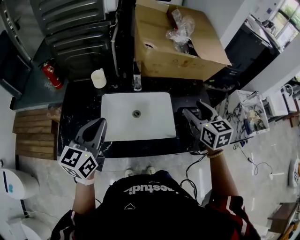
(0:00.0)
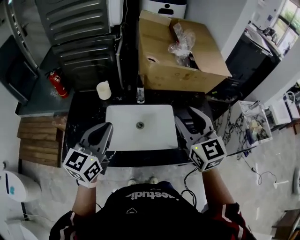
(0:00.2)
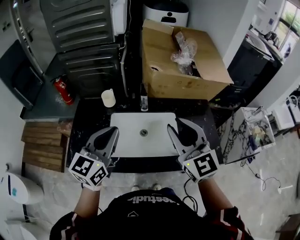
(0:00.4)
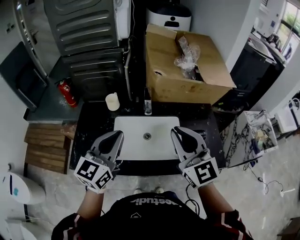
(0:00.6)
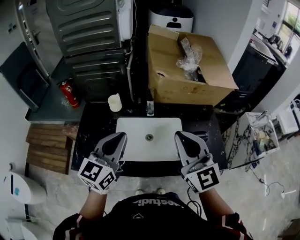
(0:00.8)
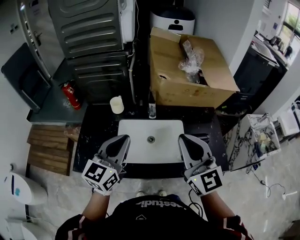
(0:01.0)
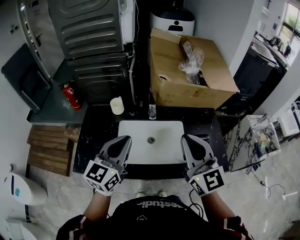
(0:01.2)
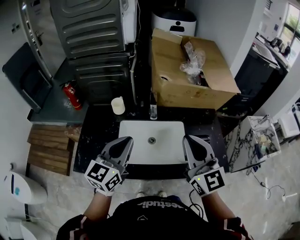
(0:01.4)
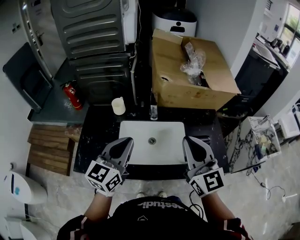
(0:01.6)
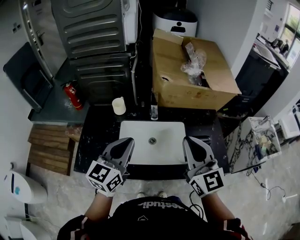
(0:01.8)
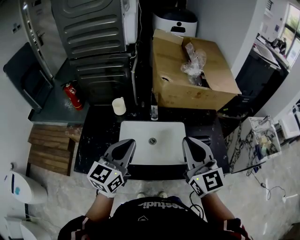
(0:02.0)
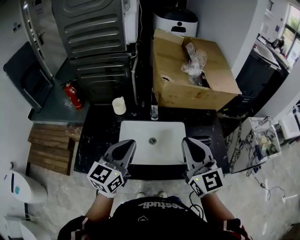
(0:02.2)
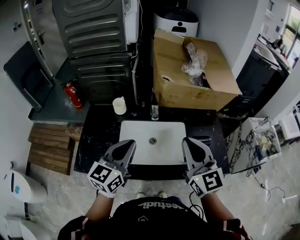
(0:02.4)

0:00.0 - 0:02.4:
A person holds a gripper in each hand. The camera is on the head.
0:00.0 - 0:01.2: The left gripper ends up some 5 cm from where it was; the right gripper shifts some 20 cm upward, to the left and backward, turns by roughly 30 degrees, and closes its fingers.
0:01.2 - 0:02.4: The grippers stay close to where they were, moving slightly.

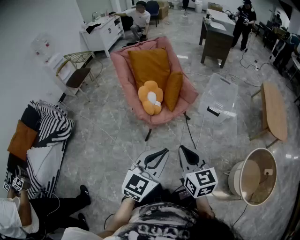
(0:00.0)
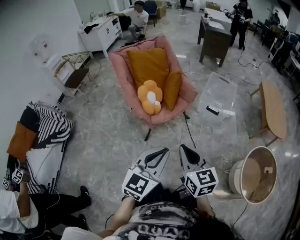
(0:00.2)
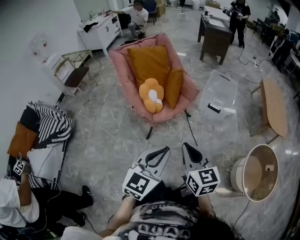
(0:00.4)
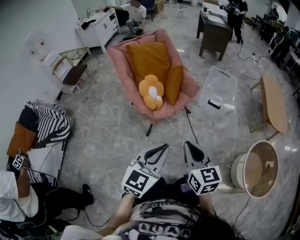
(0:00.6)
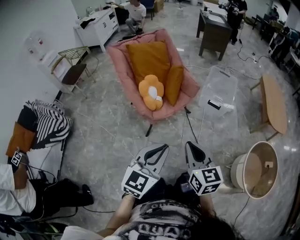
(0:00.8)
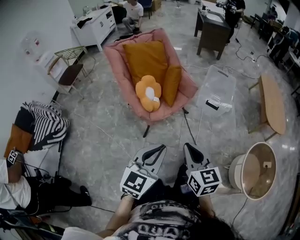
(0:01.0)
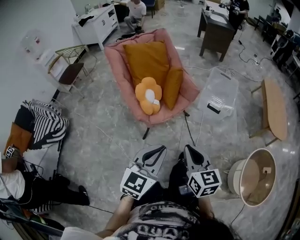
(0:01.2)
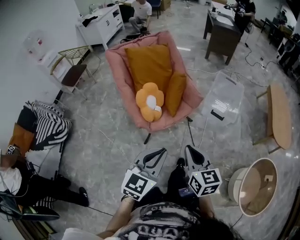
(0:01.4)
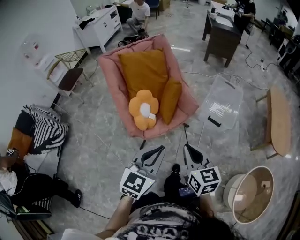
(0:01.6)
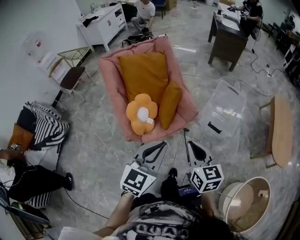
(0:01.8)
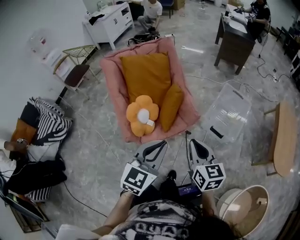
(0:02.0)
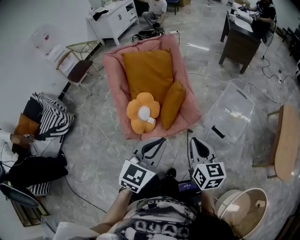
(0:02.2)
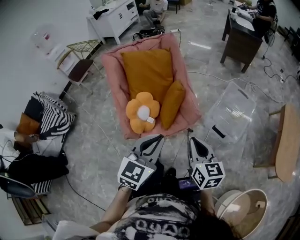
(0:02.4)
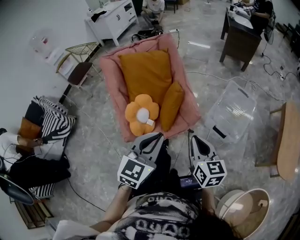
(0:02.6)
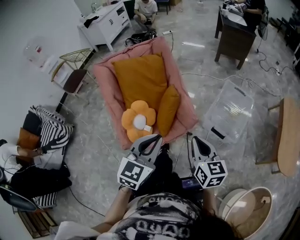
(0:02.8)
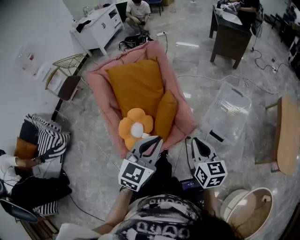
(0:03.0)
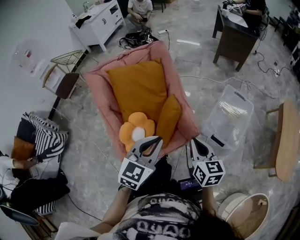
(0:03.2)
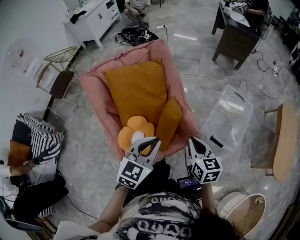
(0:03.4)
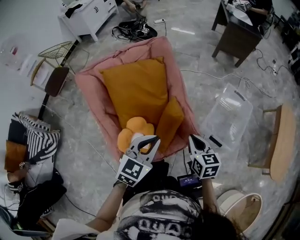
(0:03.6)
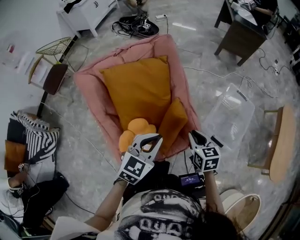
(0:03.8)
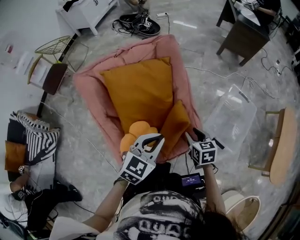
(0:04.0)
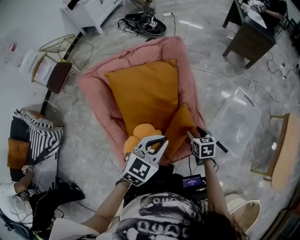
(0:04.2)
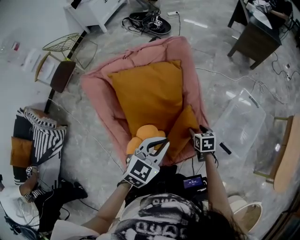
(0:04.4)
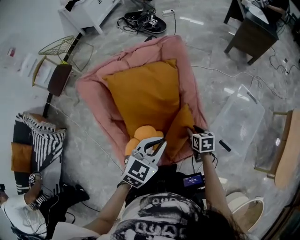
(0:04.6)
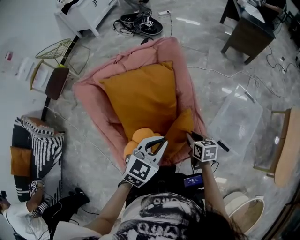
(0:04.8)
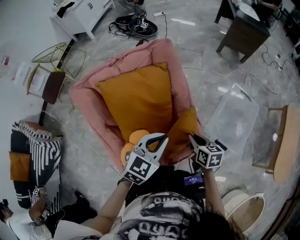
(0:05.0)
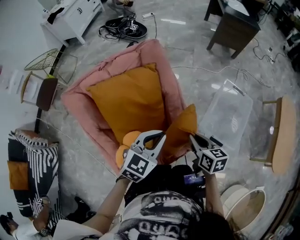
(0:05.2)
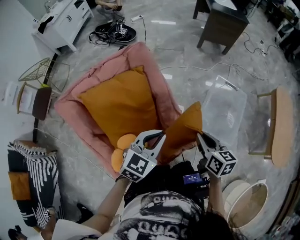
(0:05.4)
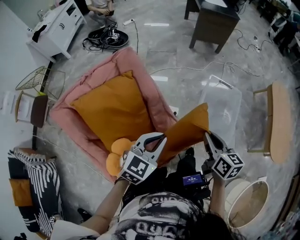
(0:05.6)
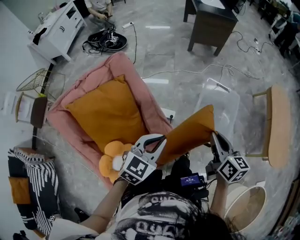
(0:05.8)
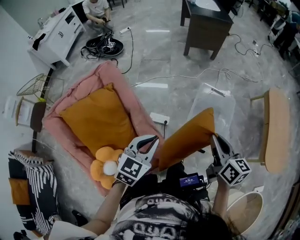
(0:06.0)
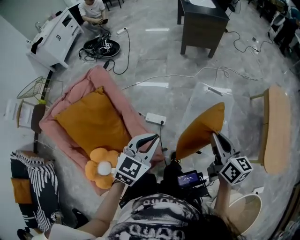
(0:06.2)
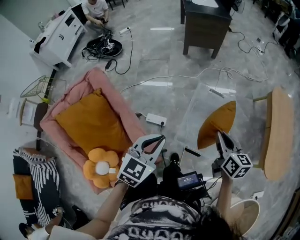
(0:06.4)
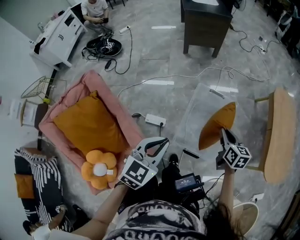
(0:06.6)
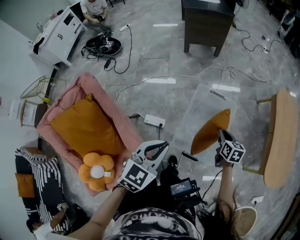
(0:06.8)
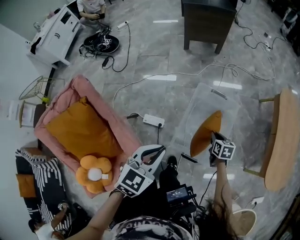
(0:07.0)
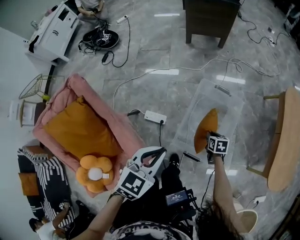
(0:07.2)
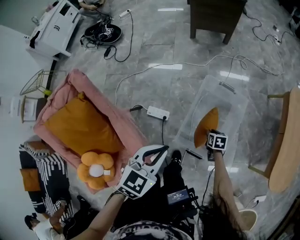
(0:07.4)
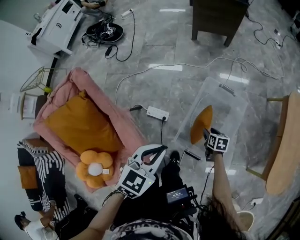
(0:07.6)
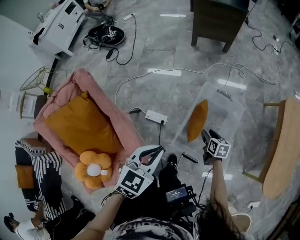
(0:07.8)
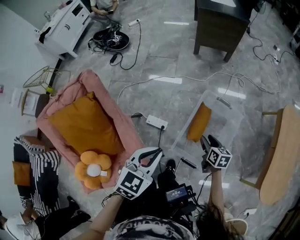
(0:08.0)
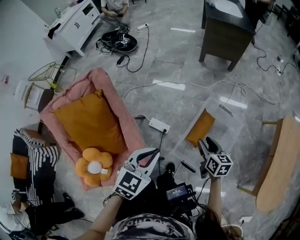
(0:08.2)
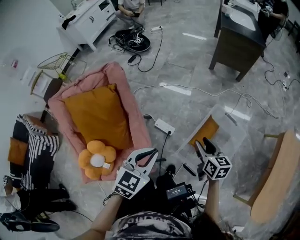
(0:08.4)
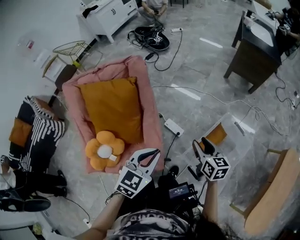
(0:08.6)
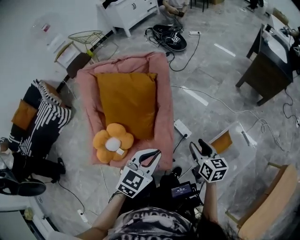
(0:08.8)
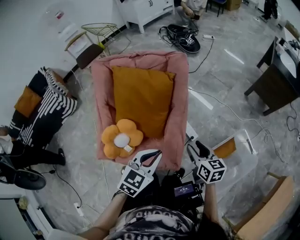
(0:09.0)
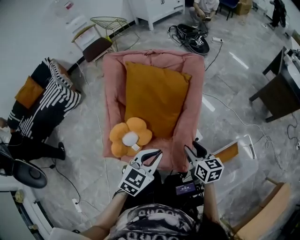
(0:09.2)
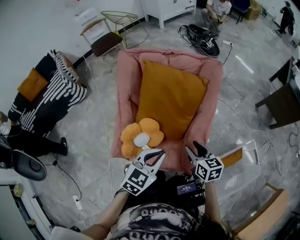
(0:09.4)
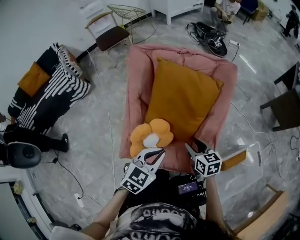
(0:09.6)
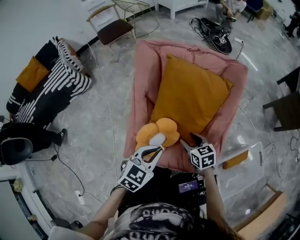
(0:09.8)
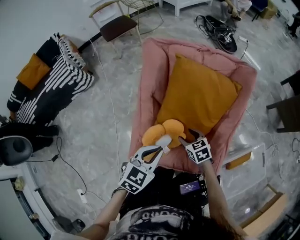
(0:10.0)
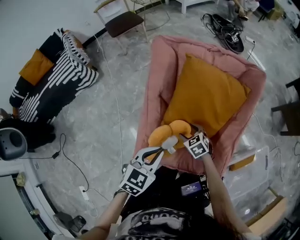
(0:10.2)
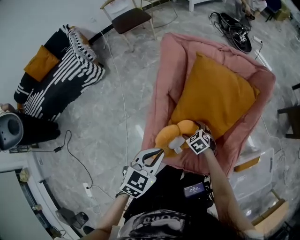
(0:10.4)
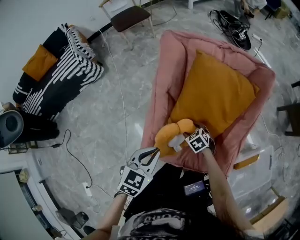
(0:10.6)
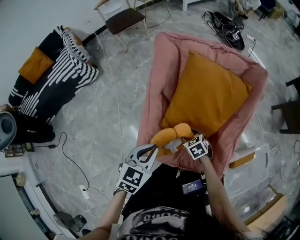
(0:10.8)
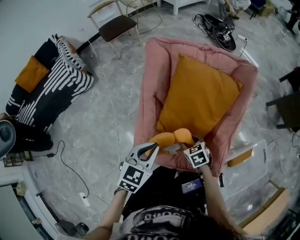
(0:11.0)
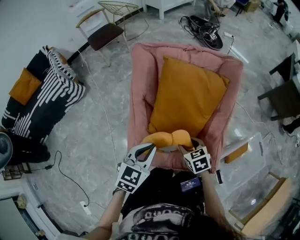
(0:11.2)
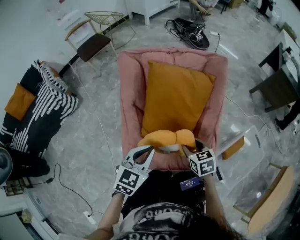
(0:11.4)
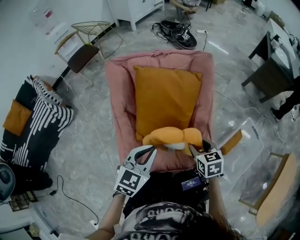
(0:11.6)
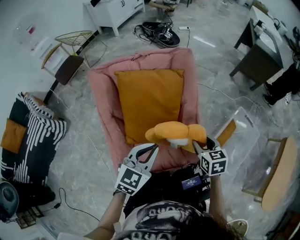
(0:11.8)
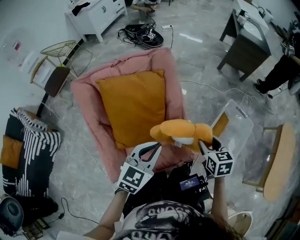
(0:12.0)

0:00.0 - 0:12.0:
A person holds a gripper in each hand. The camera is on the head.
0:00.0 - 0:01.6: The two grippers go some 20 cm forward.
0:01.6 - 0:03.0: The left gripper is displaced forward by approximately 25 cm, while the right gripper heads forward and to the right, covering about 25 cm.
0:03.0 - 0:04.4: The right gripper is displaced forward, downward and to the left by roughly 40 cm, tilts its fingers some 40 degrees downward, and opens. Meanwhile the left gripper shifts about 25 cm forward, to the left and downward.
0:04.4 - 0:06.0: The right gripper is displaced to the right and upward by approximately 40 cm, tilts its fingers roughly 40 degrees upward, and closes; the left gripper shifts some 25 cm to the right and forward.
0:06.0 - 0:07.6: The left gripper moves to the right, forward and downward, roughly 20 cm; the right gripper shifts roughly 40 cm downward and forward, tilts its fingers about 40 degrees downward, and opens its fingers.
0:07.6 - 0:09.0: The right gripper moves roughly 50 cm, and swivels approximately 50 degrees. Meanwhile the left gripper moves about 30 cm, and changes its angle by roughly 40 degrees.
0:09.0 - 0:10.4: The left gripper moves to the left, some 35 cm. The right gripper is displaced to the left and downward by about 40 cm, tips its fingers downward by some 30 degrees, and opens its fingers.
0:10.4 - 0:12.0: The left gripper moves approximately 25 cm, and swivels about 40 degrees. Meanwhile the right gripper ends up about 40 cm from where it was, swivels some 70 degrees, and closes.

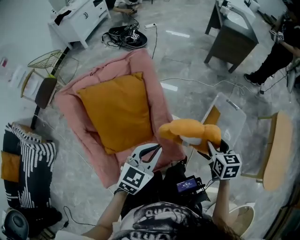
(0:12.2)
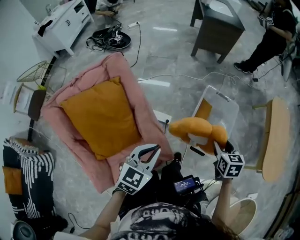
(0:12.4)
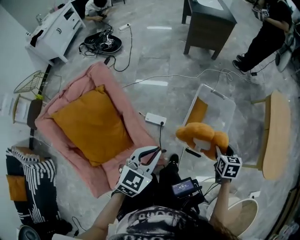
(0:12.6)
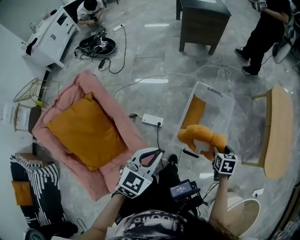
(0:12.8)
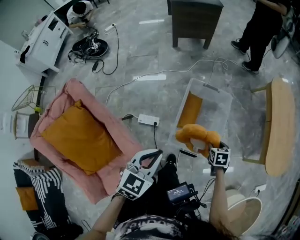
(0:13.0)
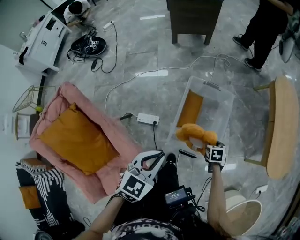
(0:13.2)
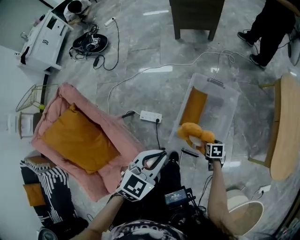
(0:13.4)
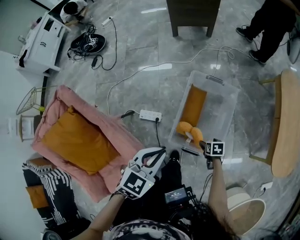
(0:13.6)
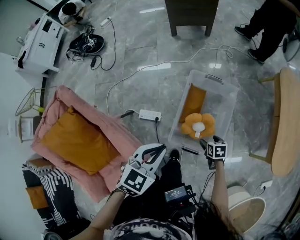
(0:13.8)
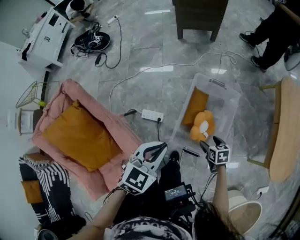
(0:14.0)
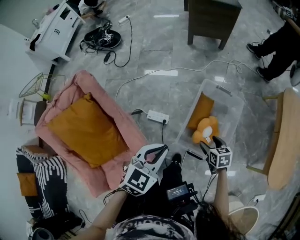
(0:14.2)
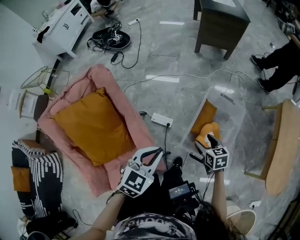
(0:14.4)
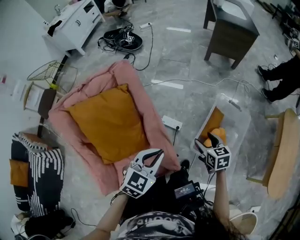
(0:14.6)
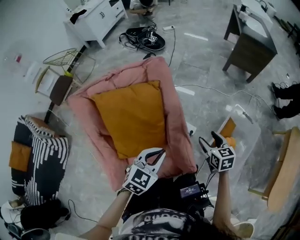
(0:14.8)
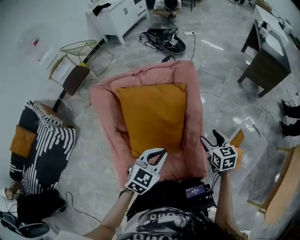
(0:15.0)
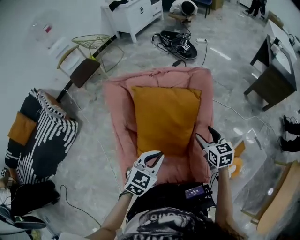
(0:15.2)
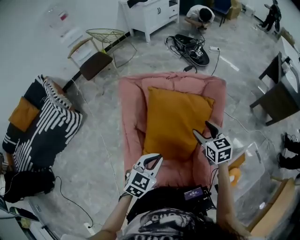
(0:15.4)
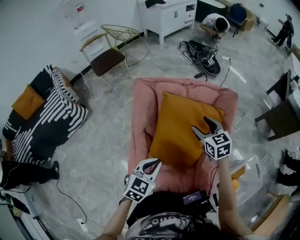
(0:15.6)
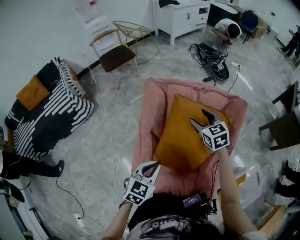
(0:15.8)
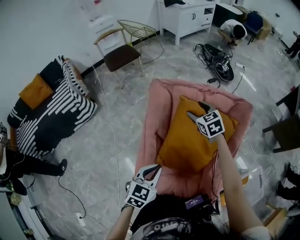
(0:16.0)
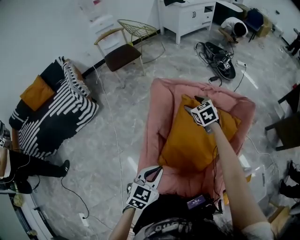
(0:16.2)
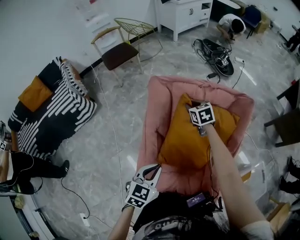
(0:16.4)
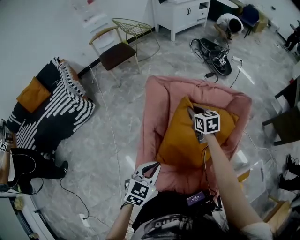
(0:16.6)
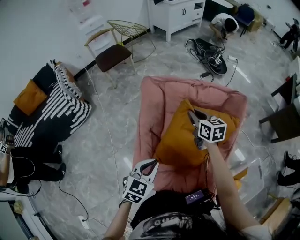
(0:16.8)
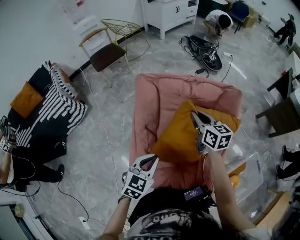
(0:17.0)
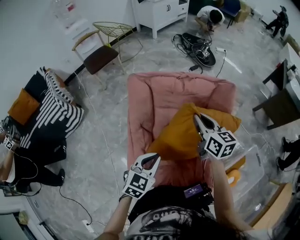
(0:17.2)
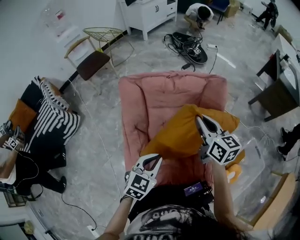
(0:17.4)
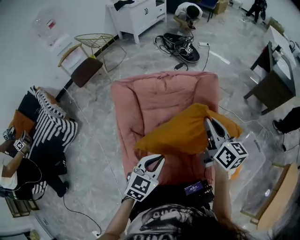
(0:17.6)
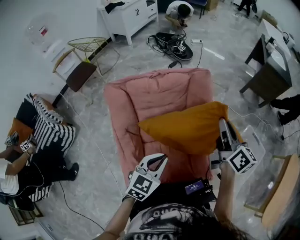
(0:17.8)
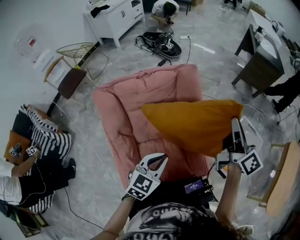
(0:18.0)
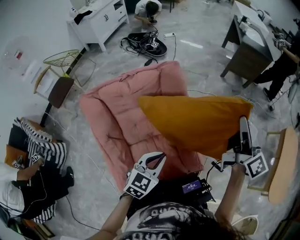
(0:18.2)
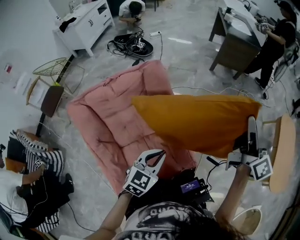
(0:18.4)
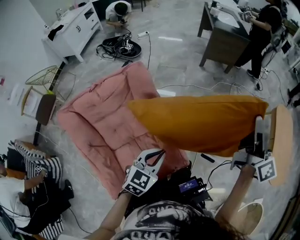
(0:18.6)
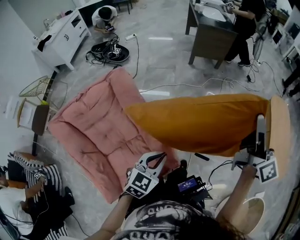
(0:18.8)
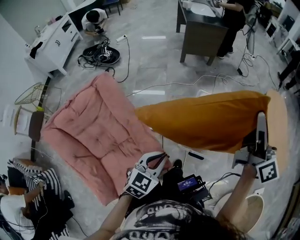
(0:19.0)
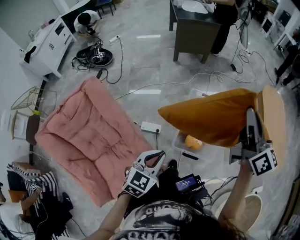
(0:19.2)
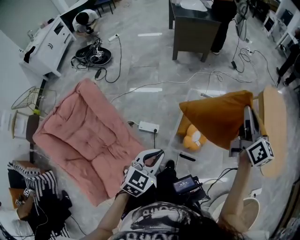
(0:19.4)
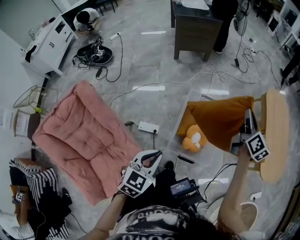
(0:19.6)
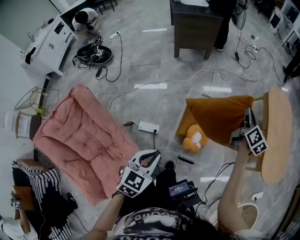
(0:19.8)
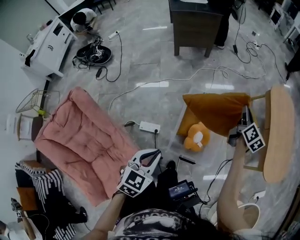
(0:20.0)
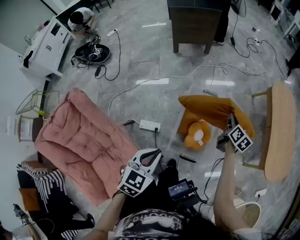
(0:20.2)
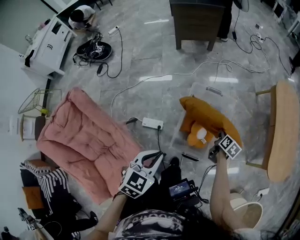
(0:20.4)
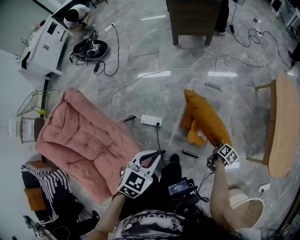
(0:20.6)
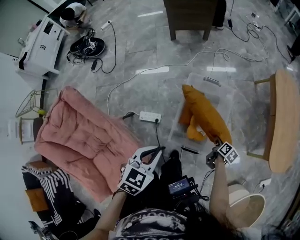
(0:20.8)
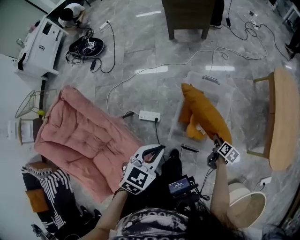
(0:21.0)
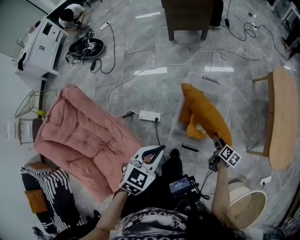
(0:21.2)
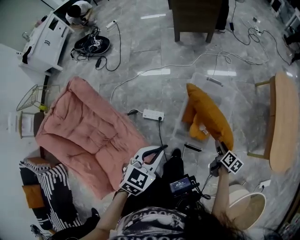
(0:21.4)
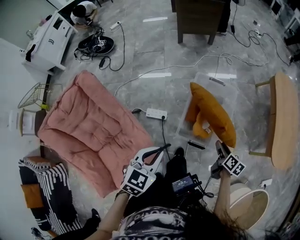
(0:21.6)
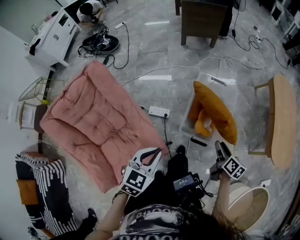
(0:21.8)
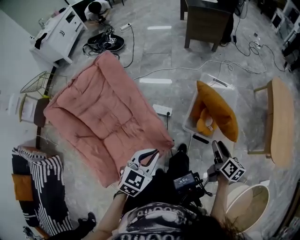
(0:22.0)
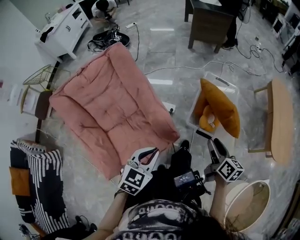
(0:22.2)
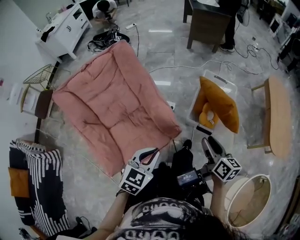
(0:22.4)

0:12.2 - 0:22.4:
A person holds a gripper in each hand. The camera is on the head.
0:12.2 - 0:13.6: The right gripper is displaced downward by some 35 cm, swivels approximately 40 degrees, and opens. The left gripper moves roughly 35 cm, and rotates about 30 degrees.
0:13.6 - 0:15.2: The two grippers travel together, some 50 cm. The right gripper tilts its fingers some 40 degrees upward. Meanwhile the left gripper swivels approximately 40 degrees.
0:15.2 - 0:16.6: The right gripper goes approximately 35 cm to the left and forward, and closes. The left gripper travels to the left by approximately 15 cm, and turns by some 20 degrees.
0:16.6 - 0:18.0: The right gripper ends up about 50 cm from where it was, and points its fingers roughly 40 degrees further upward. Meanwhile the left gripper shifts by approximately 15 cm, and swivels roughly 30 degrees.
0:18.0 - 0:19.4: The two grippers travel together, approximately 50 cm. The right gripper swivels approximately 30 degrees. Meanwhile the left gripper turns by about 30 degrees.
0:19.4 - 0:21.0: The left gripper moves forward and downward, about 10 cm; the right gripper heads downward, covering roughly 50 cm, tilts its fingers approximately 50 degrees downward, and opens its fingers.
0:21.0 - 0:22.4: The right gripper heads backward, upward and to the left, covering about 50 cm, and tilts its fingers some 30 degrees upward. The left gripper travels backward and to the left by approximately 40 cm.
